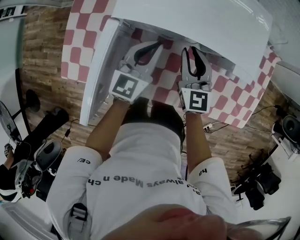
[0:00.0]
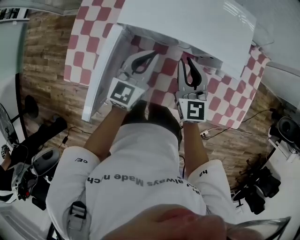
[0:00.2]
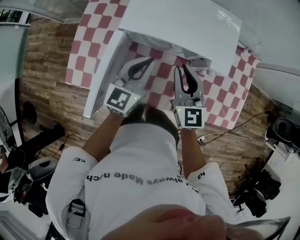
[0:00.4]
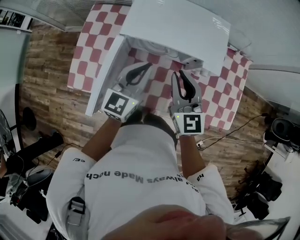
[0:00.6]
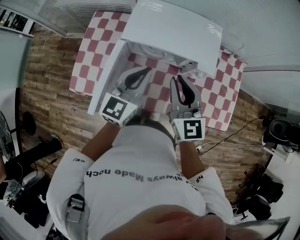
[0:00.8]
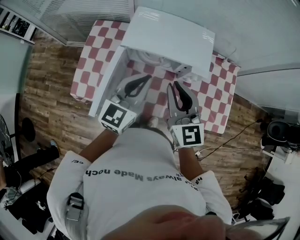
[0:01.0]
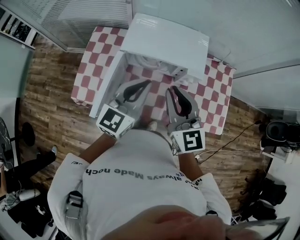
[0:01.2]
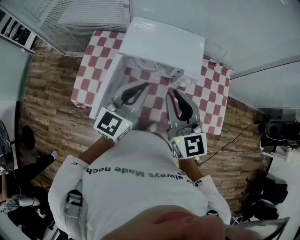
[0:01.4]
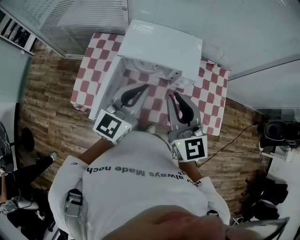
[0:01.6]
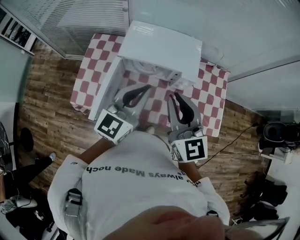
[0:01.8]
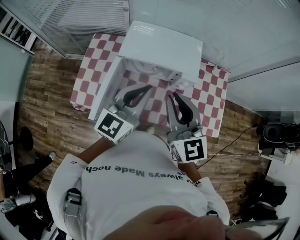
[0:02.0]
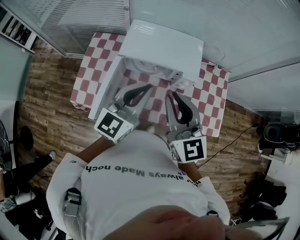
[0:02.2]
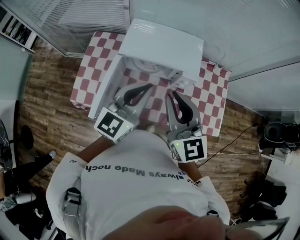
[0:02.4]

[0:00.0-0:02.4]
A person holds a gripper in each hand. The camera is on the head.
0:00.0 to 0:01.2: The two grippers go some 35 cm upward and backward.
0:01.2 to 0:02.4: The right gripper travels upward by about 5 cm, while the left gripper moves approximately 5 cm.

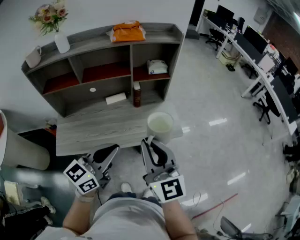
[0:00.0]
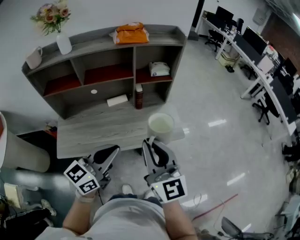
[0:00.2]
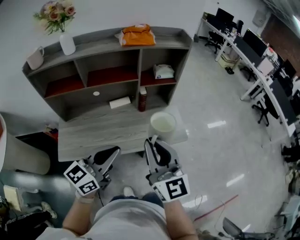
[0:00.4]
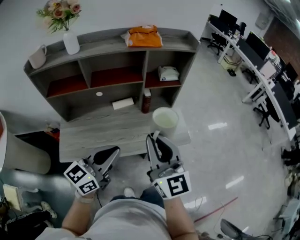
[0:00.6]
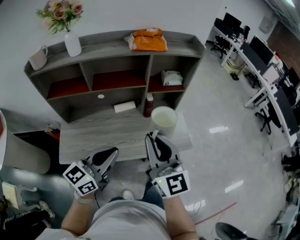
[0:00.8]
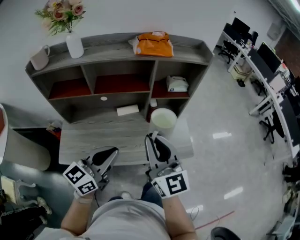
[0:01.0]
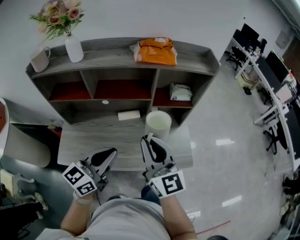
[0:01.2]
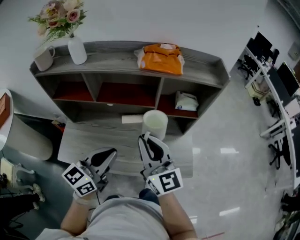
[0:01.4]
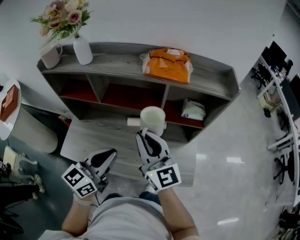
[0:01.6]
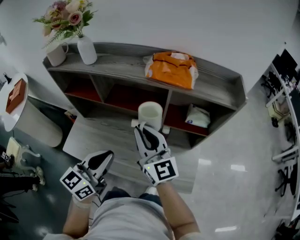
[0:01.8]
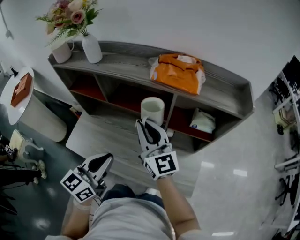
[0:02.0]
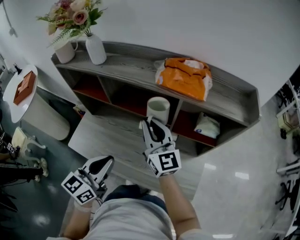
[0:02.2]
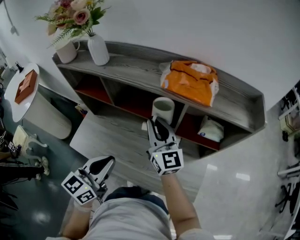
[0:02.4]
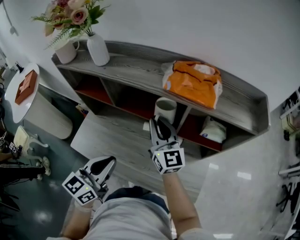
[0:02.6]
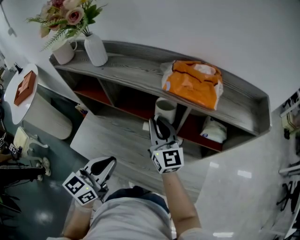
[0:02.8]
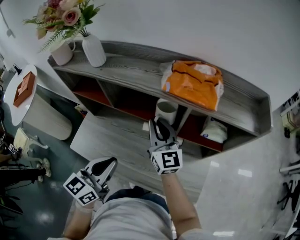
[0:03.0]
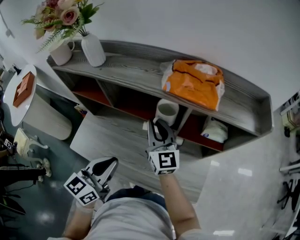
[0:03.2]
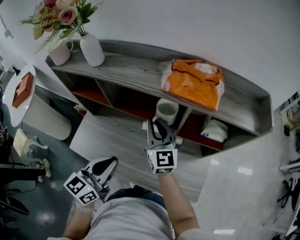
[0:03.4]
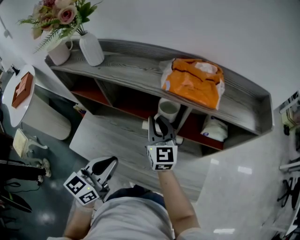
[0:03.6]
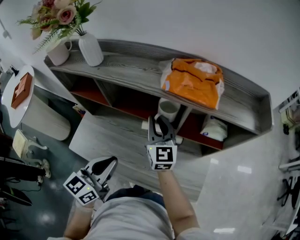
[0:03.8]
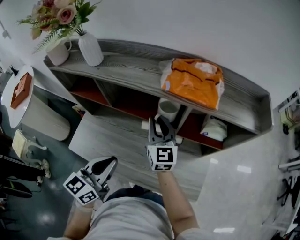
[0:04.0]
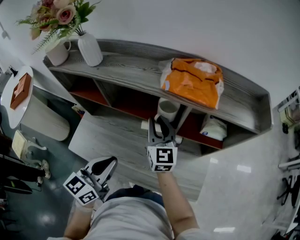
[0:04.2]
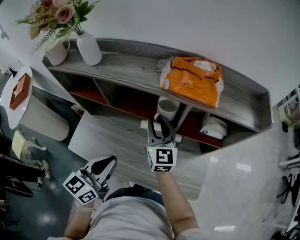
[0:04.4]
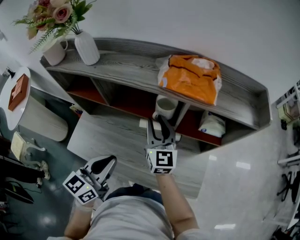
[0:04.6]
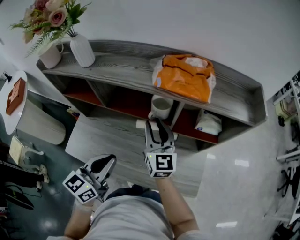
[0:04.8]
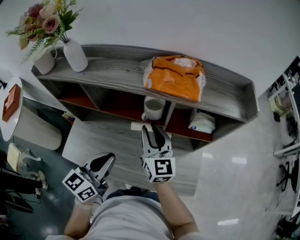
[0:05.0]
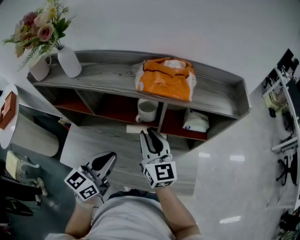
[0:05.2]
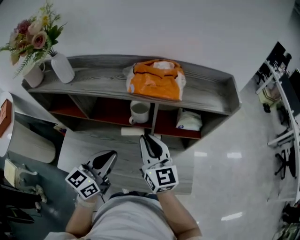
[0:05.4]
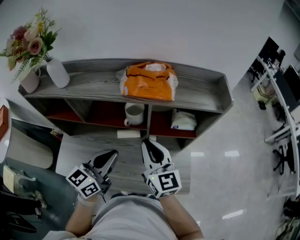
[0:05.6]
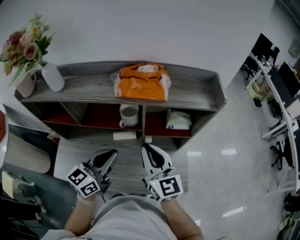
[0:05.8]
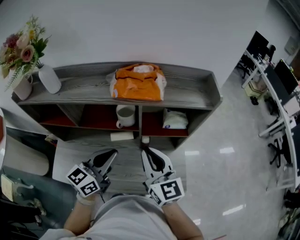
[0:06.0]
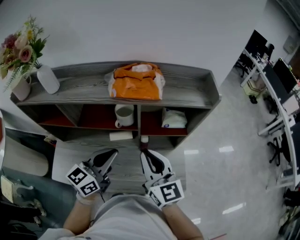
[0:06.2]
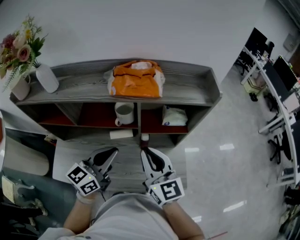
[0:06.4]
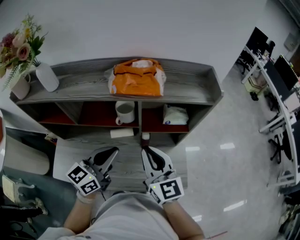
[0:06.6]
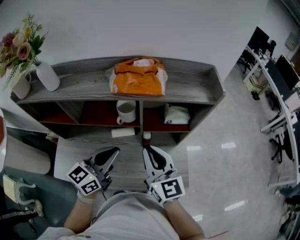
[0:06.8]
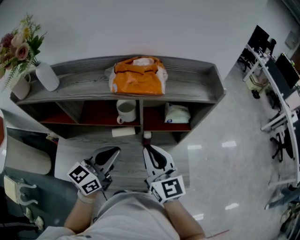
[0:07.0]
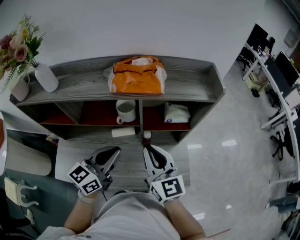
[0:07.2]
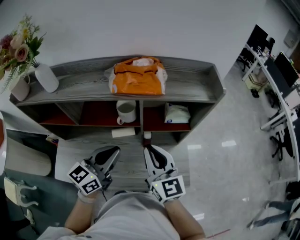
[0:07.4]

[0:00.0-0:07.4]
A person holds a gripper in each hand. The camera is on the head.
0:00.0 to 0:01.4: The grippers both shift forward and to the left by roughly 20 cm. The right gripper swivels some 20 degrees.
0:01.4 to 0:03.0: The left gripper goes some 5 cm forward, and rotates roughly 20 degrees. The right gripper travels forward by approximately 20 cm.
0:03.0 to 0:04.4: The grippers stay close to where they were, moving slightly.
0:04.4 to 0:06.0: The left gripper is displaced to the right and forward by approximately 10 cm, and turns by roughly 20 degrees; the right gripper shifts roughly 15 cm to the right, backward and upward.
0:06.0 to 0:07.4: There are only small adjustments of the grippers.

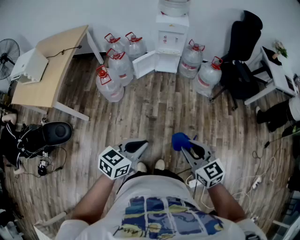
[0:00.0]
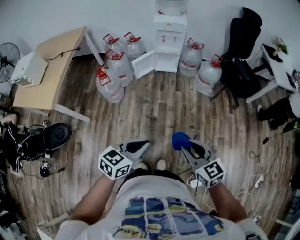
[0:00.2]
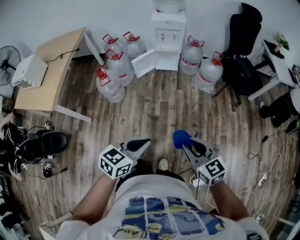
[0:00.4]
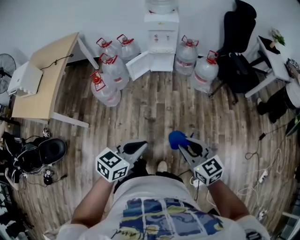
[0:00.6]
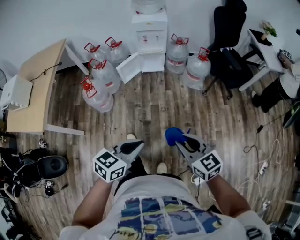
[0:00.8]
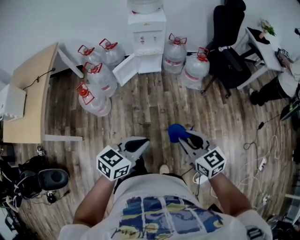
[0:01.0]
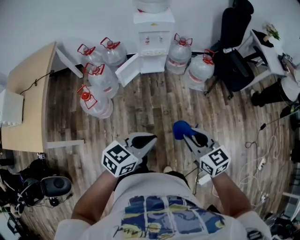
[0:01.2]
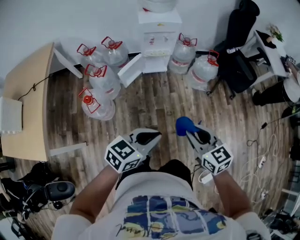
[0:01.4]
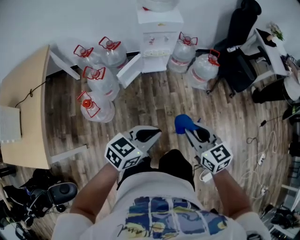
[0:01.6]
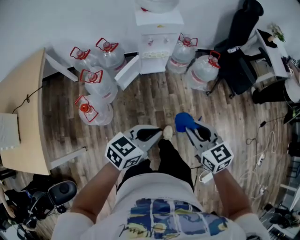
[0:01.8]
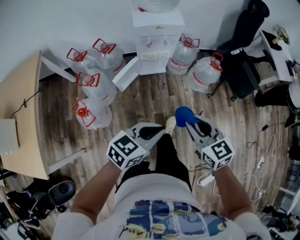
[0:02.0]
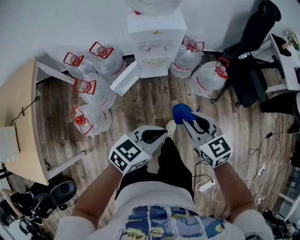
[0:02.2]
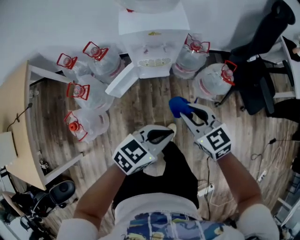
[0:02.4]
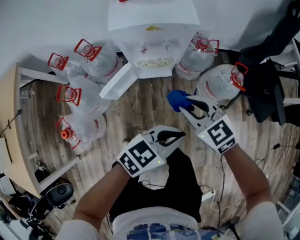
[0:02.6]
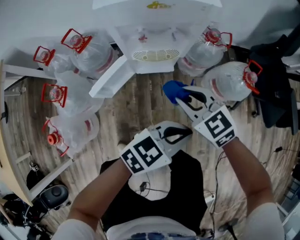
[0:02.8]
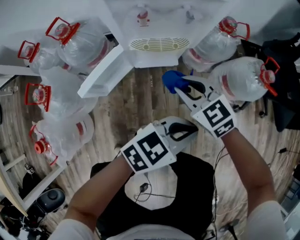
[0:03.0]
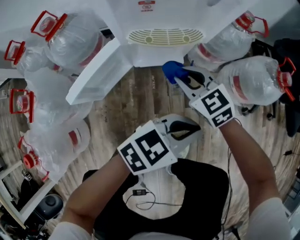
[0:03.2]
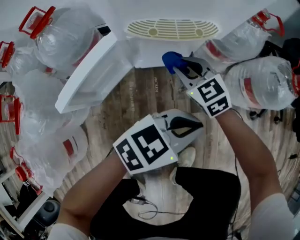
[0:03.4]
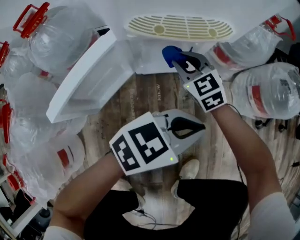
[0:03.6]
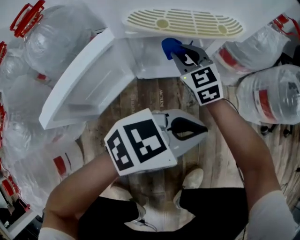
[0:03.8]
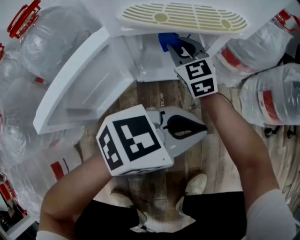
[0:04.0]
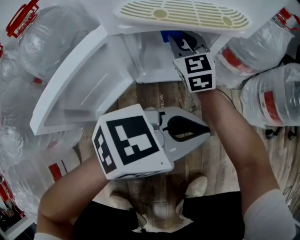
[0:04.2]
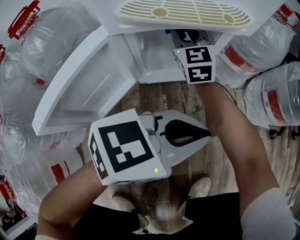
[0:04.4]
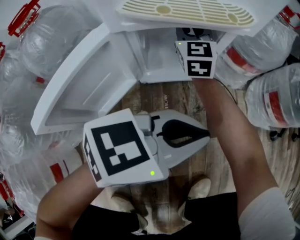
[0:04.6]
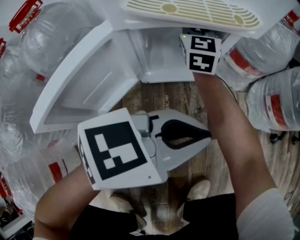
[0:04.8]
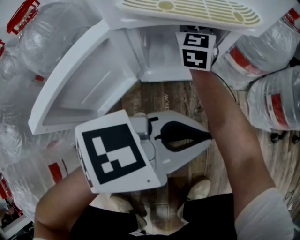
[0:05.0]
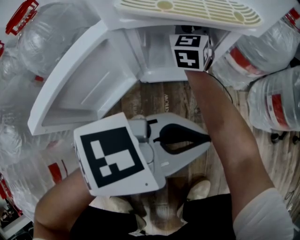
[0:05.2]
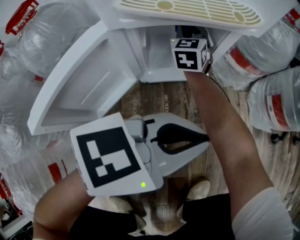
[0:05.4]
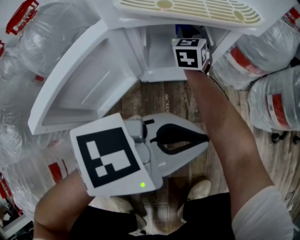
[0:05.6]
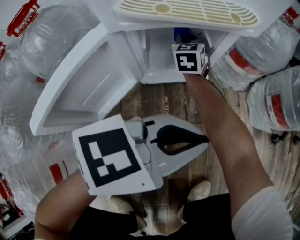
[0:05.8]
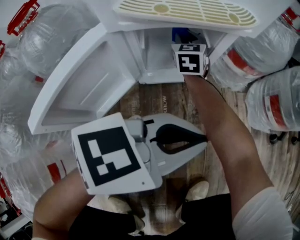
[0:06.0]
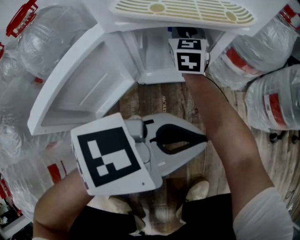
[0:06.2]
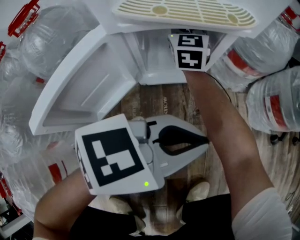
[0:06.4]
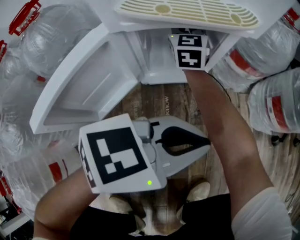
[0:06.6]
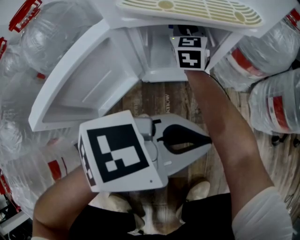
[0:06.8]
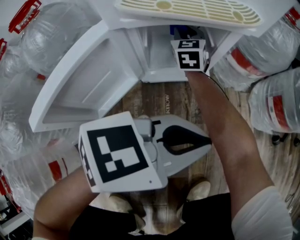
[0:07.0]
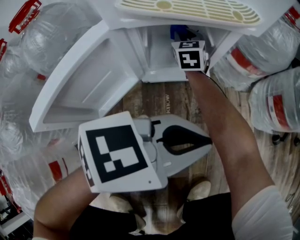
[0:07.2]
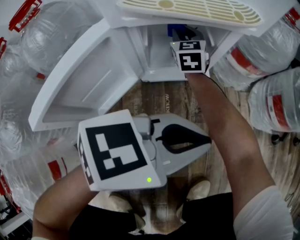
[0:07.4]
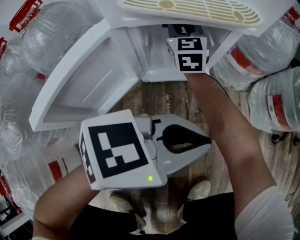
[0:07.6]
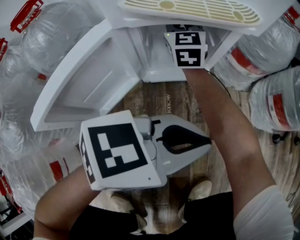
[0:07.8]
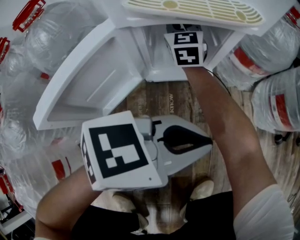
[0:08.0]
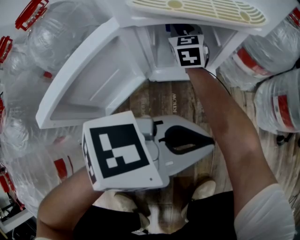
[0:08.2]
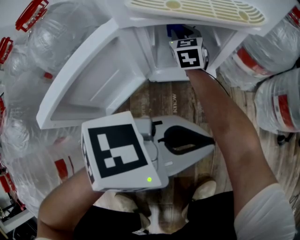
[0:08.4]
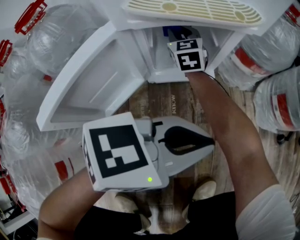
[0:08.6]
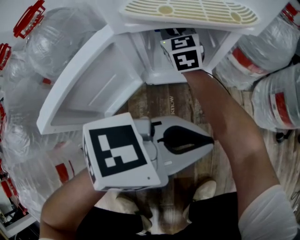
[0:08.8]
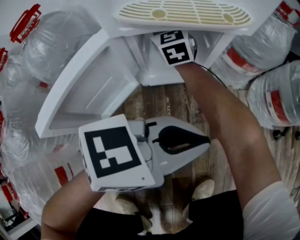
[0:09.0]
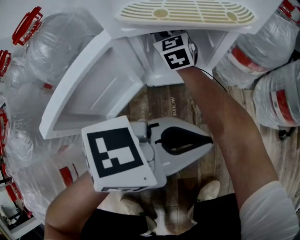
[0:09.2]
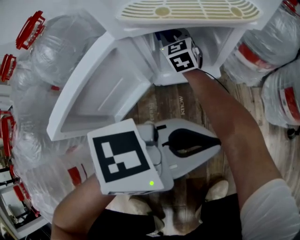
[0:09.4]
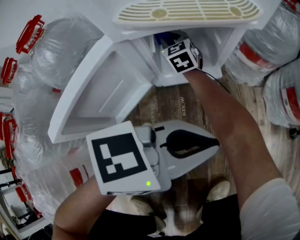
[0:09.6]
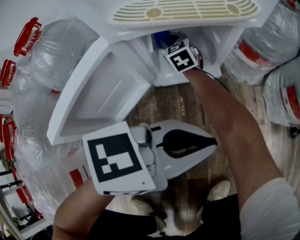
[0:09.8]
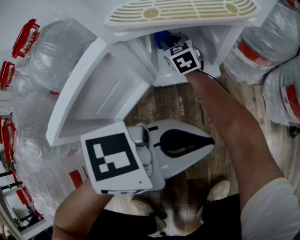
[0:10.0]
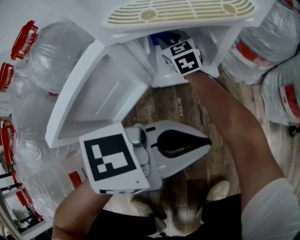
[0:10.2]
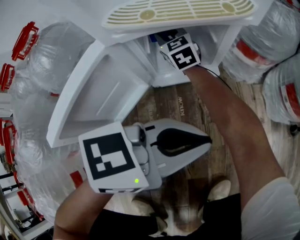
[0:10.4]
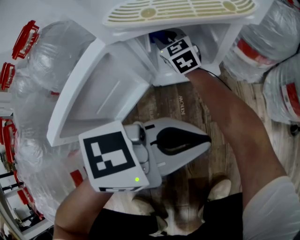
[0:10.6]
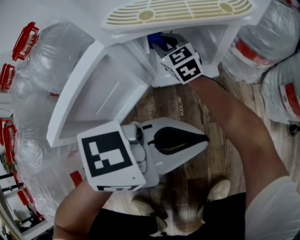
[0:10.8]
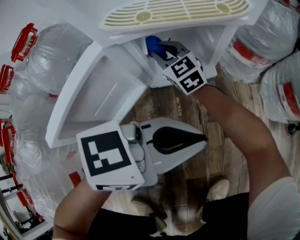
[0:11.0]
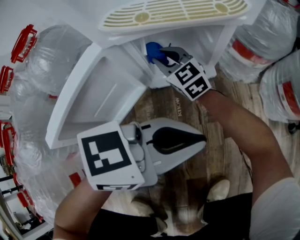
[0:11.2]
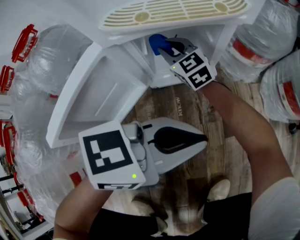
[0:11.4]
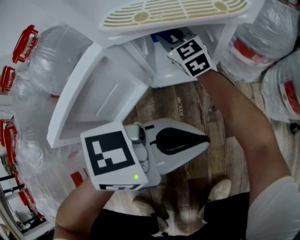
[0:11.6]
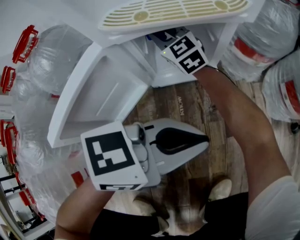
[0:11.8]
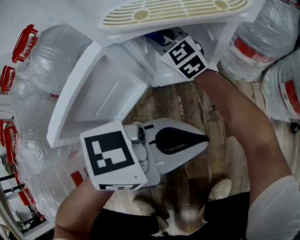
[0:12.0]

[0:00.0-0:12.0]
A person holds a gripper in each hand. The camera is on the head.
0:00.0 to 0:01.6: The right gripper travels forward and to the left by roughly 35 cm, while the left gripper goes approximately 35 cm forward, and changes its angle by about 20 degrees.
0:01.6 to 0:03.0: The pair of grippers is taken some 40 cm. The right gripper rotates roughly 20 degrees.
0:03.0 to 0:04.4: The right gripper shifts by about 35 cm, and changes its angle by roughly 40 degrees. The left gripper travels downward by about 25 cm.
0:04.4 to 0:06.0: The right gripper is displaced downward by roughly 10 cm.
0:06.0 to 0:07.6: The right gripper moves up and down over roughly 10 cm, changing direction 2 times.
0:07.6 to 0:09.0: The right gripper travels downward and back again, approximately 5 cm each way.
0:09.0 to 0:10.4: The right gripper goes approximately 10 cm downward.
0:10.4 to 0:12.0: The right gripper is displaced upward by about 5 cm.

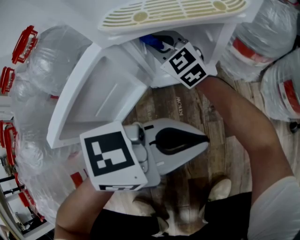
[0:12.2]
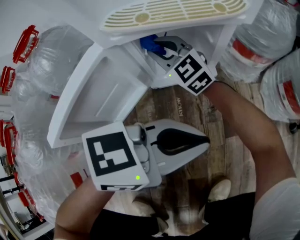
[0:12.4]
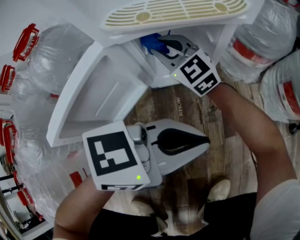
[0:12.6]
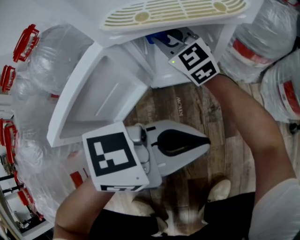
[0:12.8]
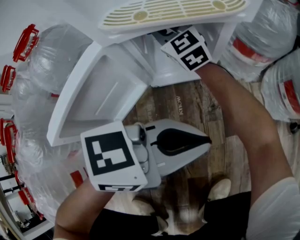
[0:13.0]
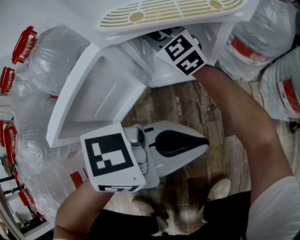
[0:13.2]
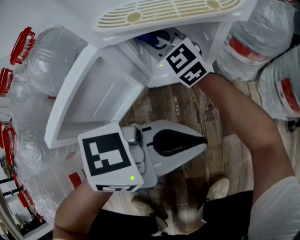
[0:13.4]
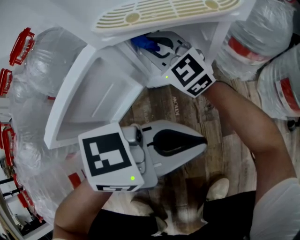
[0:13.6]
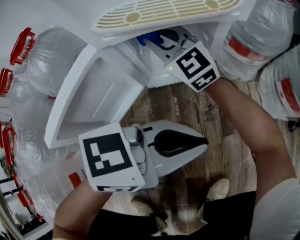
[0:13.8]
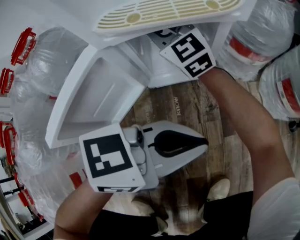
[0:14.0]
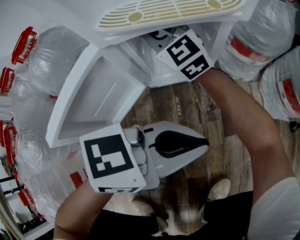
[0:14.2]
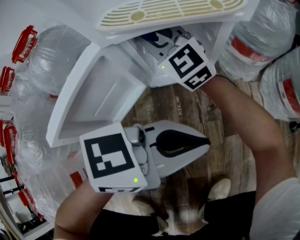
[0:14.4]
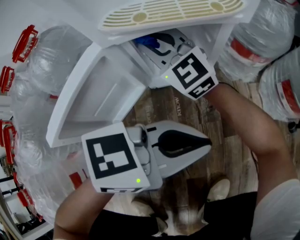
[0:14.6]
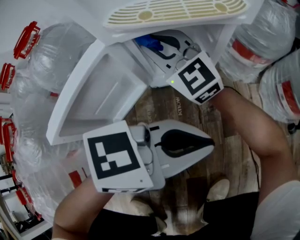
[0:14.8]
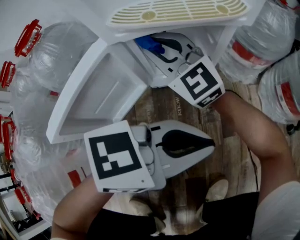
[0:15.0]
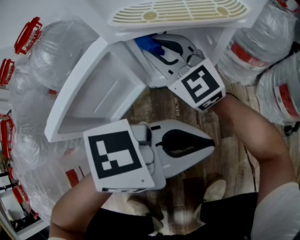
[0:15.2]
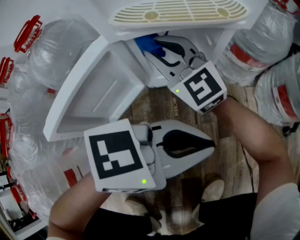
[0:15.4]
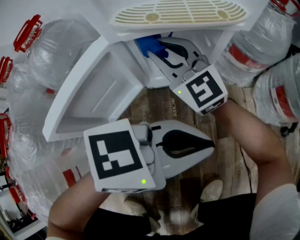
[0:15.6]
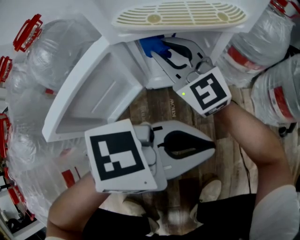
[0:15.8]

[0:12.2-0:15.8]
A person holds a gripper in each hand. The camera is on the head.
0:12.2 to 0:14.0: The right gripper heads upward, covering roughly 5 cm.
0:14.0 to 0:15.8: The right gripper changes place by some 10 cm.
